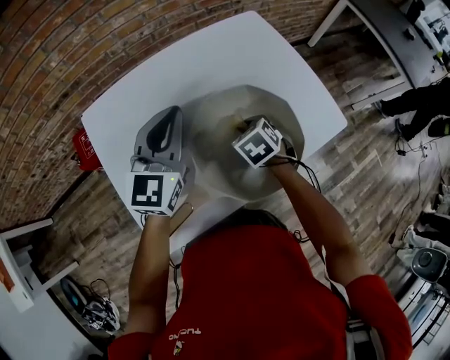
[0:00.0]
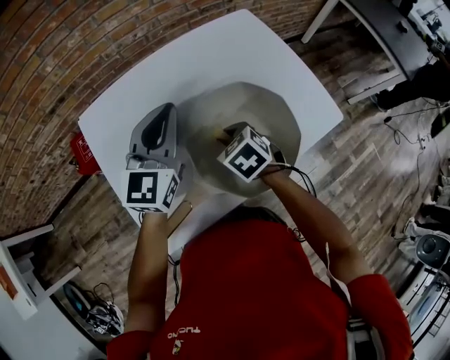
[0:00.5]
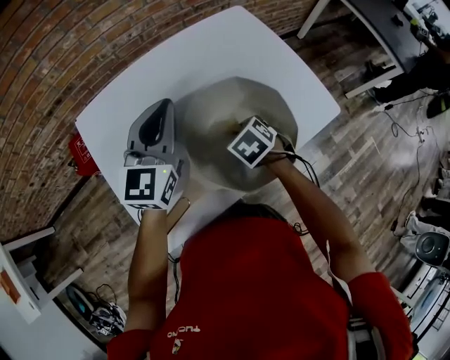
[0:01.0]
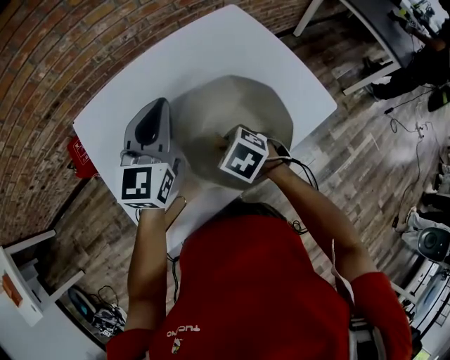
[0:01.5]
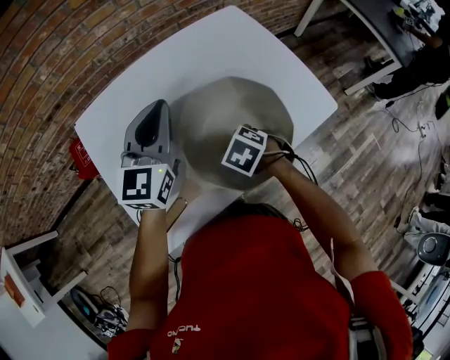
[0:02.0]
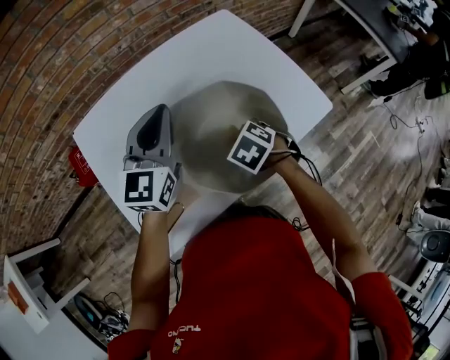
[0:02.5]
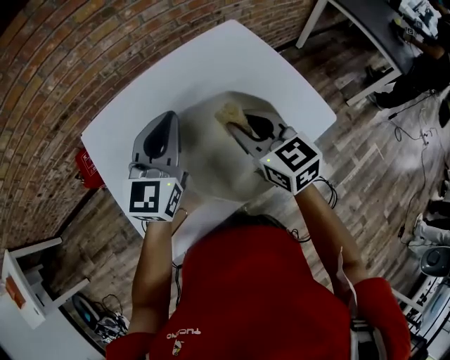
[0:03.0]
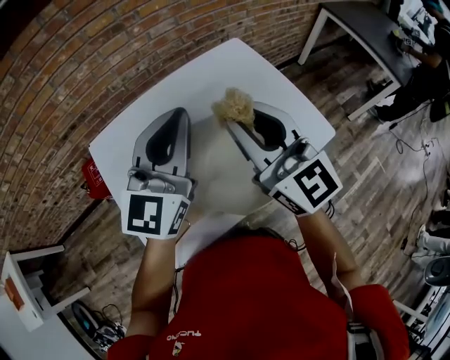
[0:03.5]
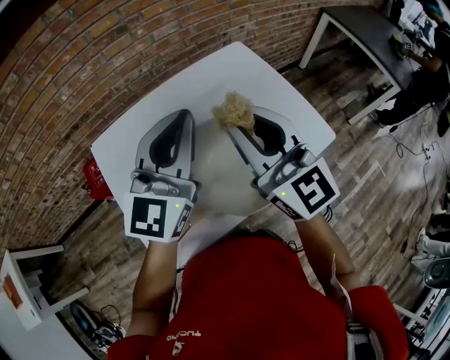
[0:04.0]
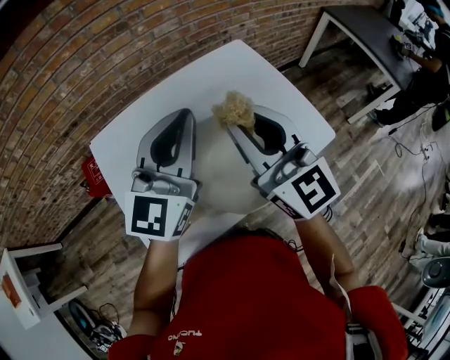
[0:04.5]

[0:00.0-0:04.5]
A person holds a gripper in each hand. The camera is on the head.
0:00.0 to 0:02.0: The right gripper ends up approximately 10 cm from where it was, and swivels some 20 degrees.
0:02.0 to 0:04.5: The left gripper is displaced upward by approximately 10 cm, while the right gripper shifts approximately 35 cm upward, and tips its fingers upward by approximately 90 degrees.

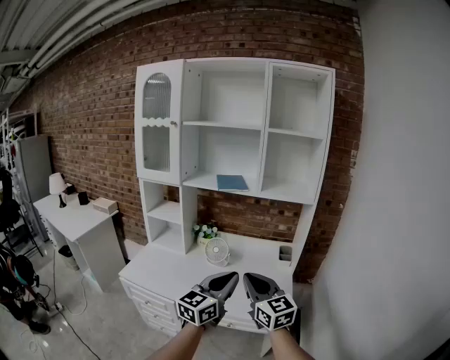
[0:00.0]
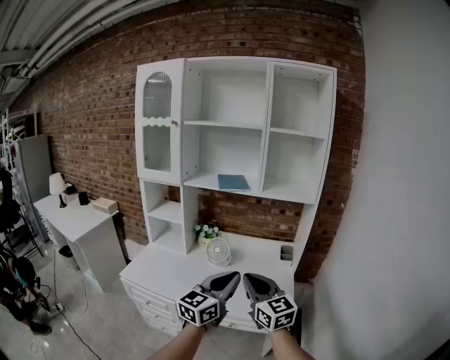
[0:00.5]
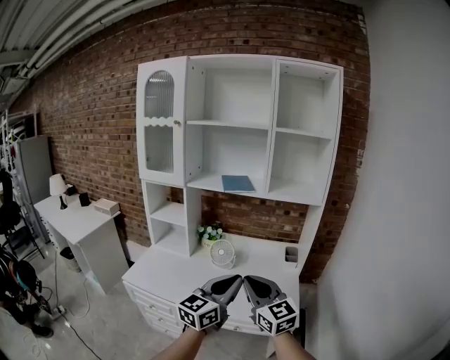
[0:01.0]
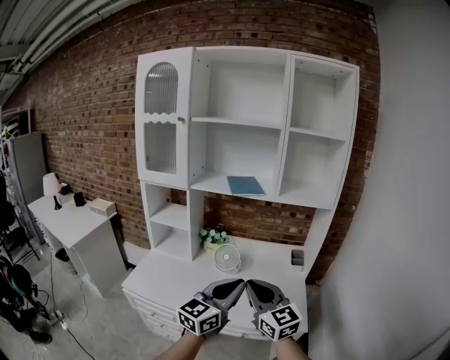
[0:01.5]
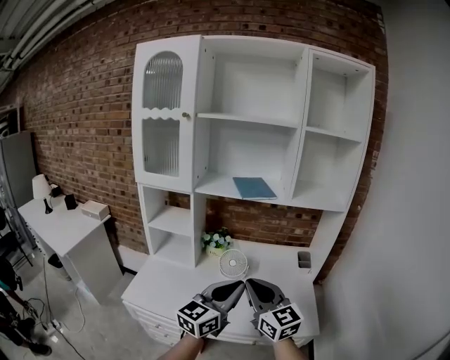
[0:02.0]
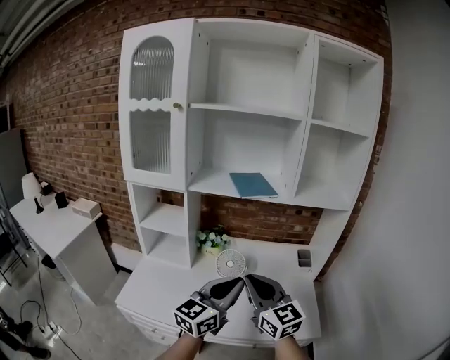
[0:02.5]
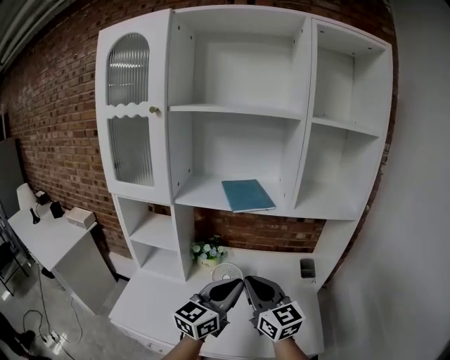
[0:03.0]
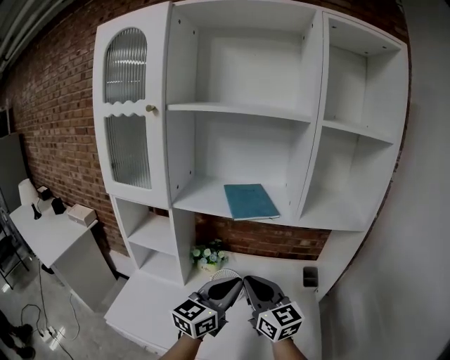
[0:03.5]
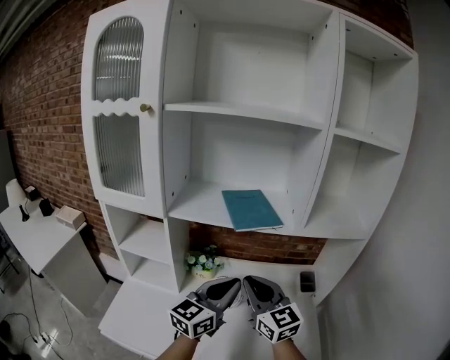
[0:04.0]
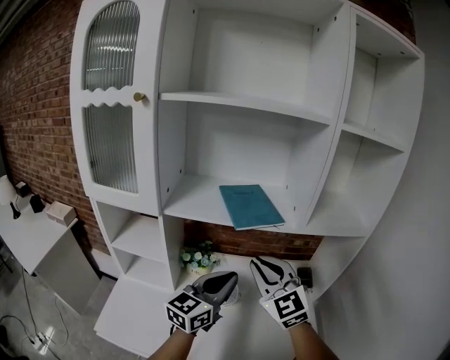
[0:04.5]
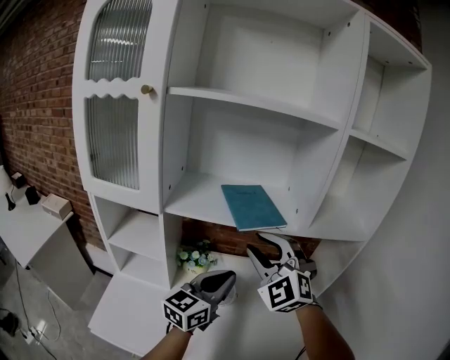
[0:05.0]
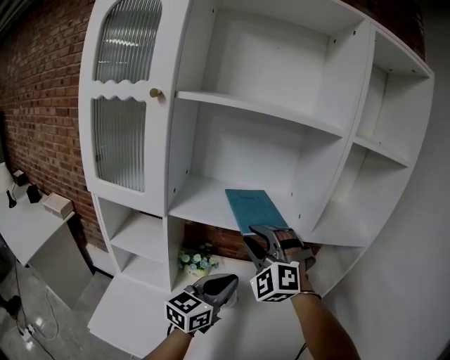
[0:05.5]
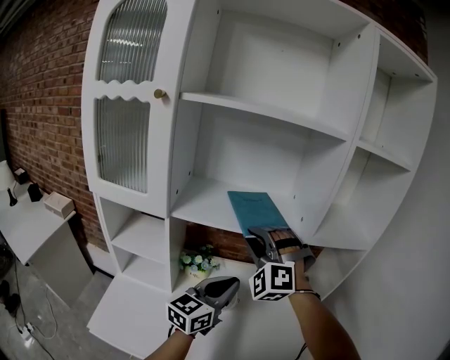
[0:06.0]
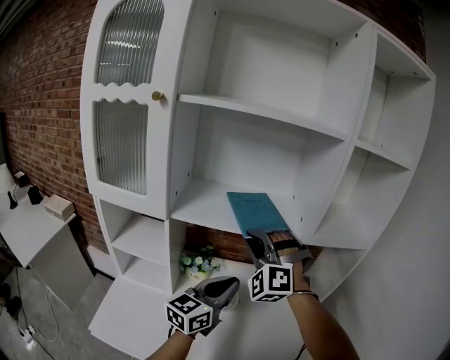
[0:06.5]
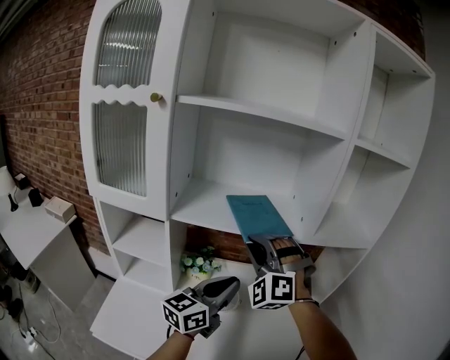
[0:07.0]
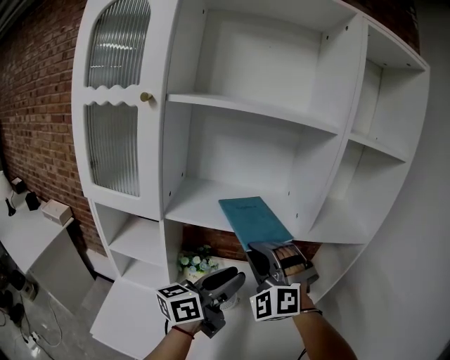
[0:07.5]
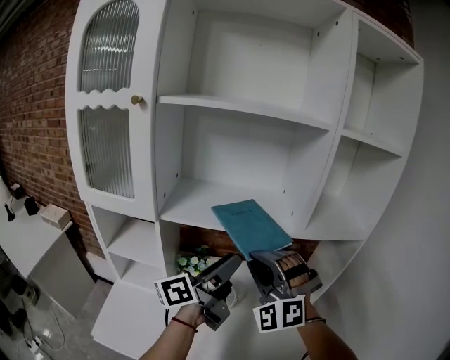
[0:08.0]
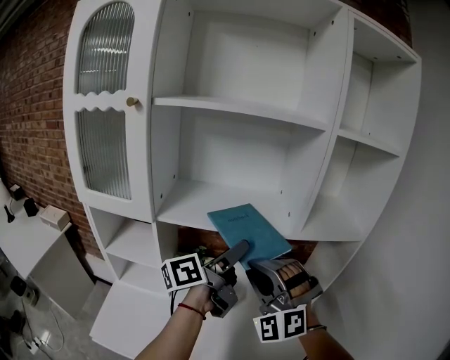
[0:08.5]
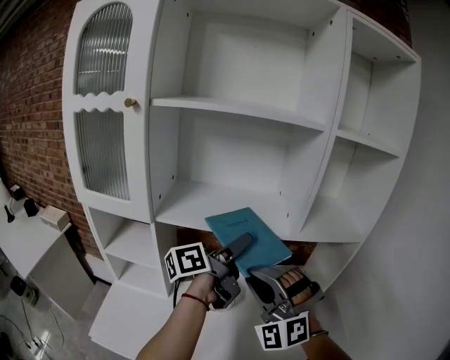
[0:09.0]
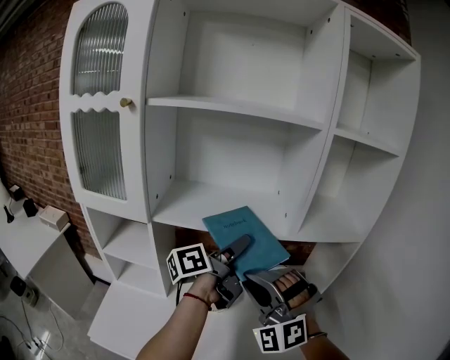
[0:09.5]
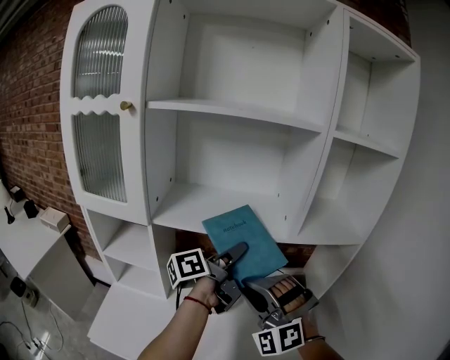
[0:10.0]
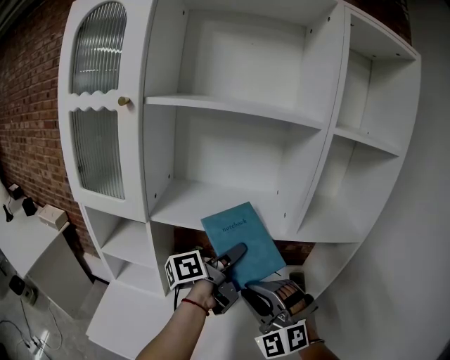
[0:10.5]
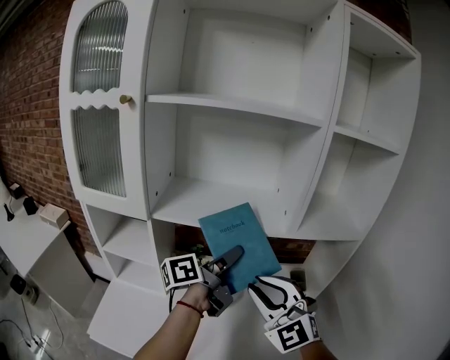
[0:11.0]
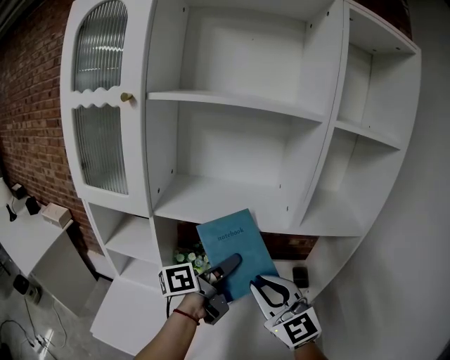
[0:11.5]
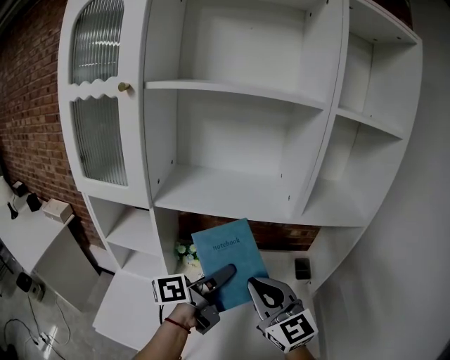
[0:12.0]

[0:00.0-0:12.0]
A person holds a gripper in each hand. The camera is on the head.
0:00.0 to 0:02.0: The grippers both shift to the left and forward by some 15 cm.
0:02.0 to 0:04.0: The grippers both shift forward by some 25 cm.
0:04.0 to 0:06.0: The right gripper moves forward, upward and to the left, some 15 cm, and rotates around the line of its fingers by approximately 80 degrees, counterclockwise from behind.
0:06.0 to 0:08.0: The right gripper heads backward, covering roughly 5 cm. Meanwhile the left gripper shifts some 10 cm upward, rotates around the line of its fingers by approximately 40 degrees, counterclockwise from behind, and opens up.
0:08.0 to 0:10.0: The right gripper moves about 5 cm, while the left gripper travels forward by some 5 cm, and closes.
0:10.0 to 0:12.0: The left gripper travels backward and downward by roughly 10 cm. The right gripper twists some 70 degrees clockwise, seen from behind.

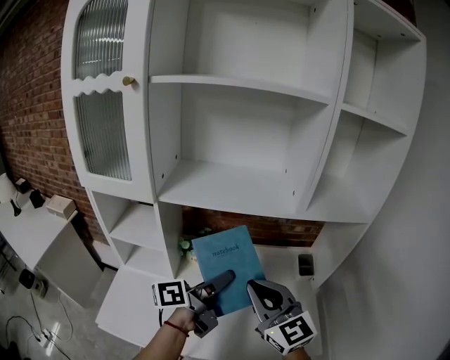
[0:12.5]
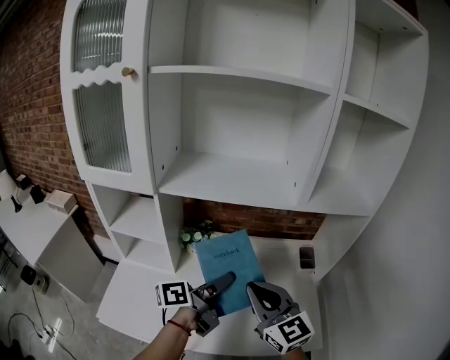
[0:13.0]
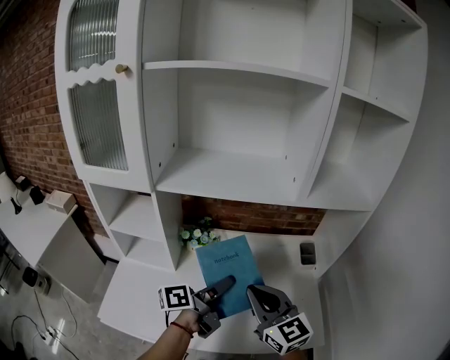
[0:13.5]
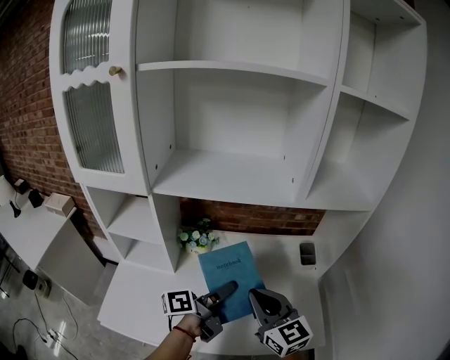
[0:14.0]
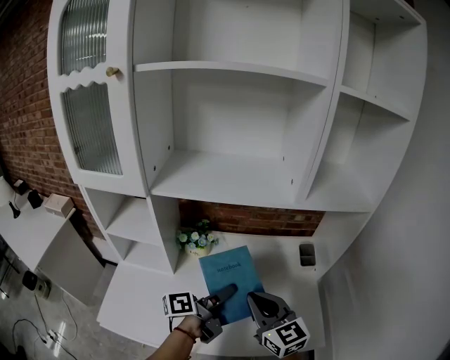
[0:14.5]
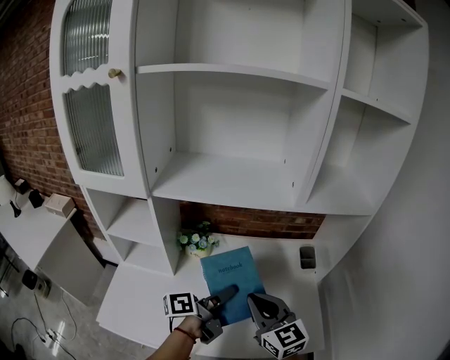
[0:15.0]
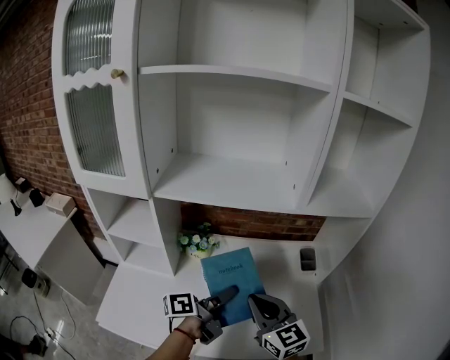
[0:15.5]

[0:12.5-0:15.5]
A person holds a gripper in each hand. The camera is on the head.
0:12.5 to 0:14.0: The grippers both shift downward by some 10 cm.
0:14.0 to 0:15.5: The grippers make only small movements.

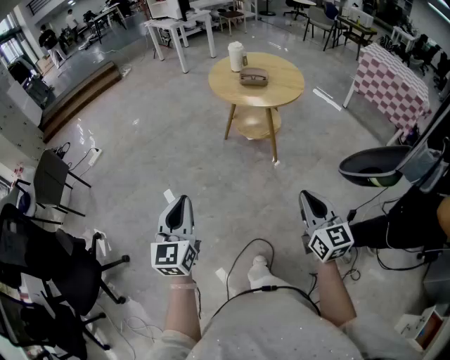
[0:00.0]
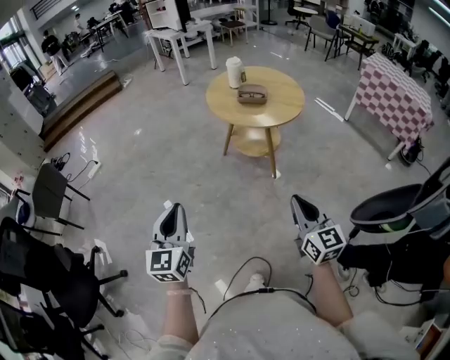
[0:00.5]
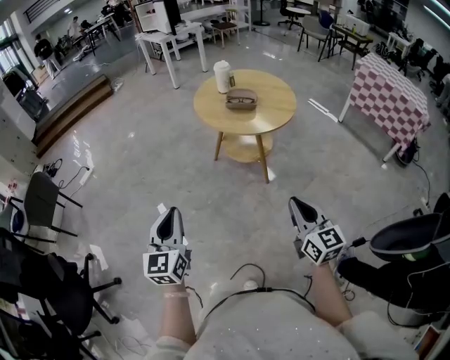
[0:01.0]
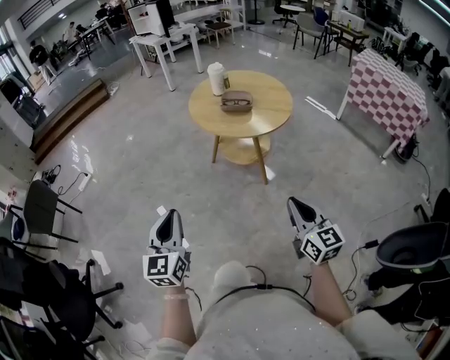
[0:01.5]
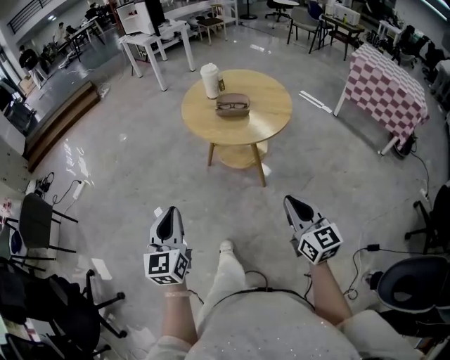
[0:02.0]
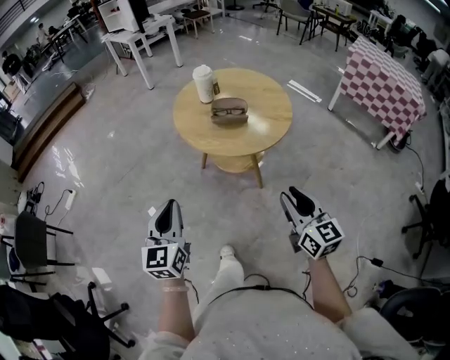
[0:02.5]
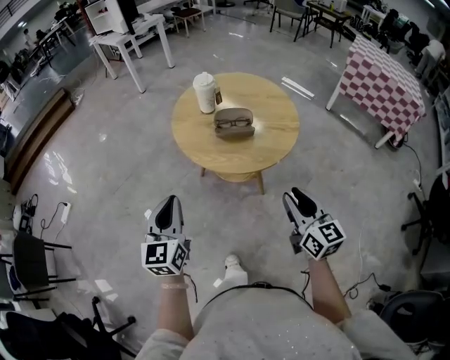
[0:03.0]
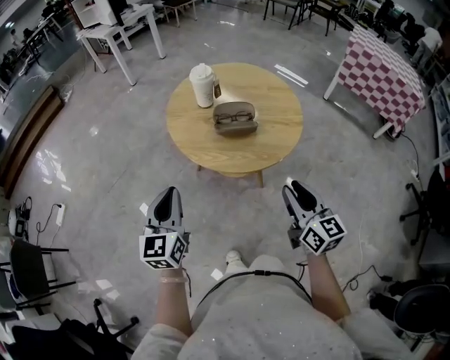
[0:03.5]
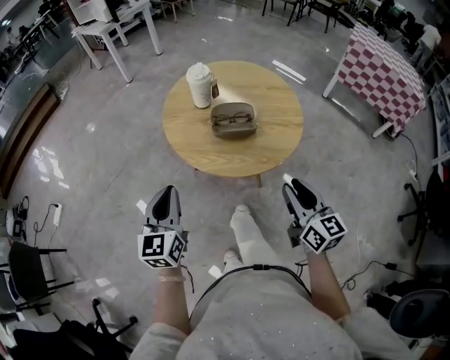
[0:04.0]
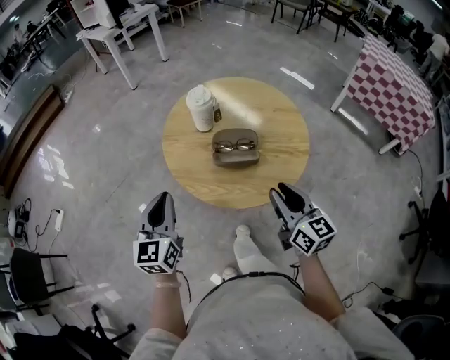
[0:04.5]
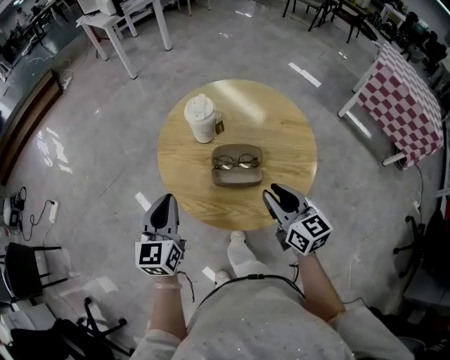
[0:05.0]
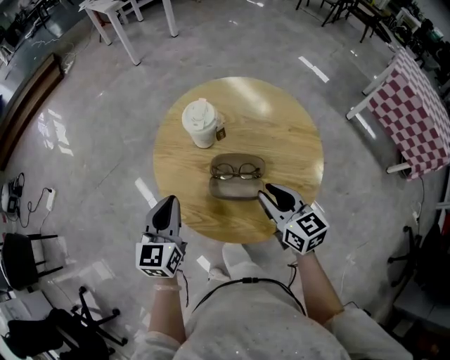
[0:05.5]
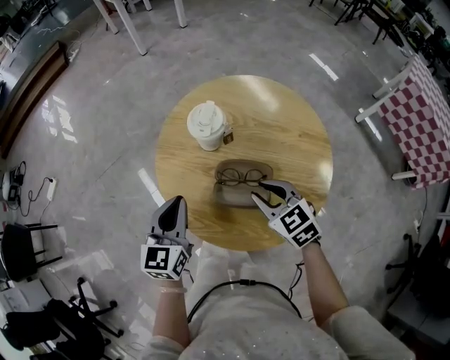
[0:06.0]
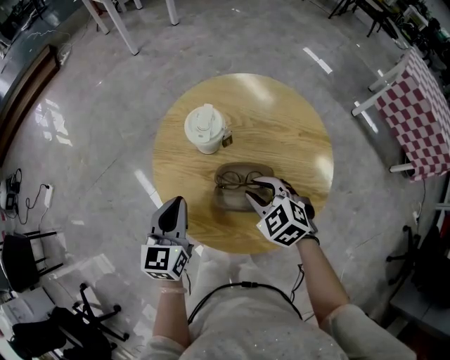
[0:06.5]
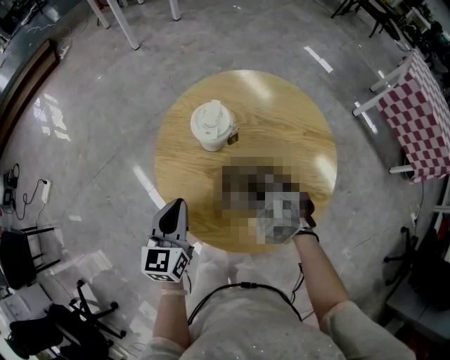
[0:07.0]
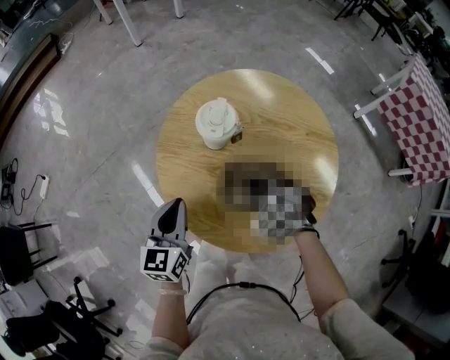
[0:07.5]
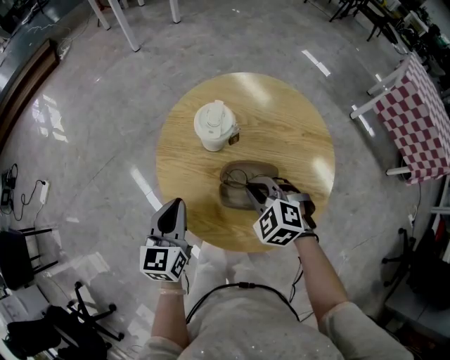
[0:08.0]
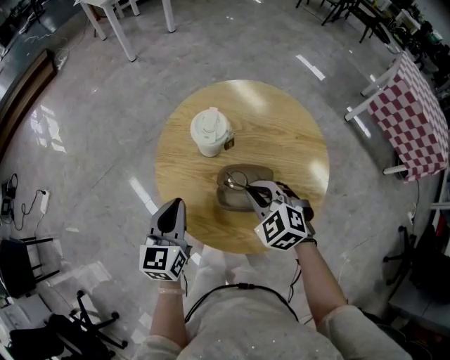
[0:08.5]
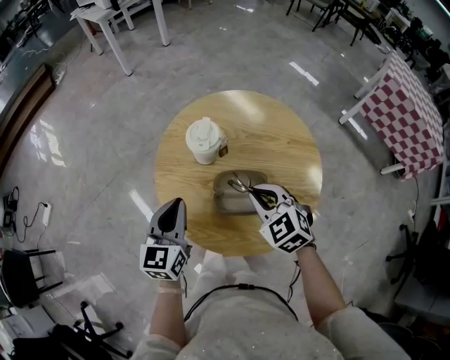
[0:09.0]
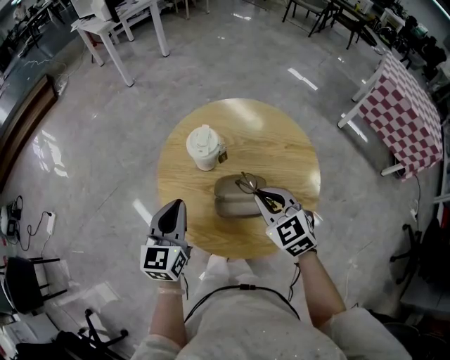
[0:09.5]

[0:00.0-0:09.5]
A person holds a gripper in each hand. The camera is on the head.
0:00.0 to 0:02.0: The grippers both shift forward by approximately 20 cm.
0:02.0 to 0:04.0: Both grippers move forward, some 25 cm. The right gripper opens up.
0:04.0 to 0:05.5: The grippers both shift forward by approximately 20 cm. The right gripper swivels roughly 30 degrees.
0:05.5 to 0:07.5: The right gripper travels downward, to the left and forward by some 10 cm, twists about 50 degrees counterclockwise, seen from behind, and closes up.
0:07.5 to 0:09.5: The right gripper shifts roughly 10 cm upward, and turns by roughly 30 degrees. Meanwhile the left gripper travels upward by roughly 5 cm.
